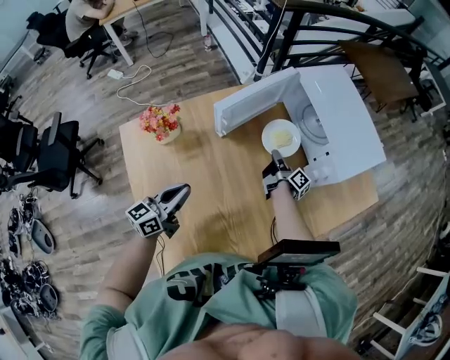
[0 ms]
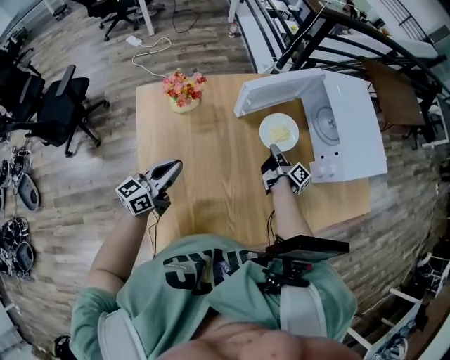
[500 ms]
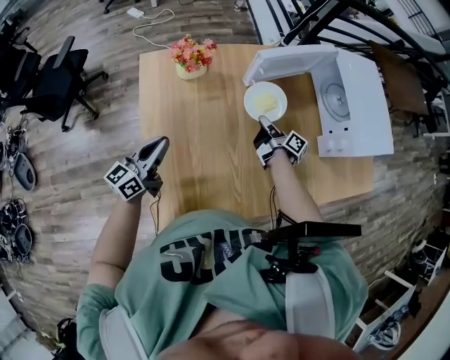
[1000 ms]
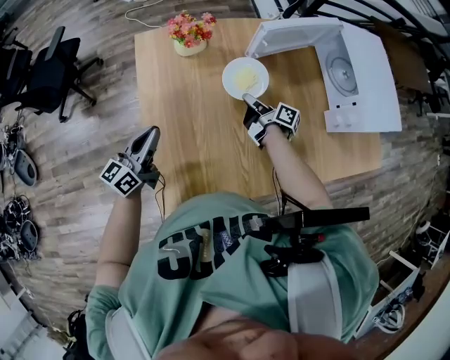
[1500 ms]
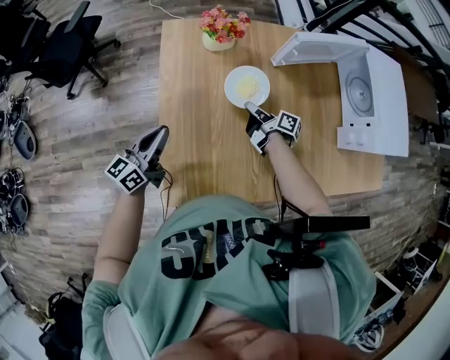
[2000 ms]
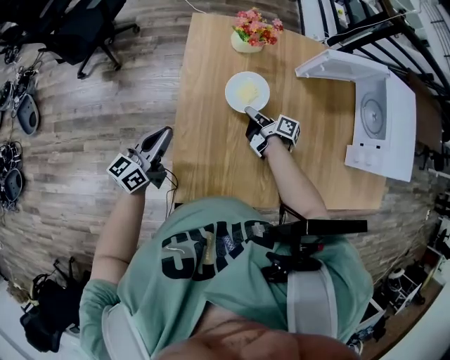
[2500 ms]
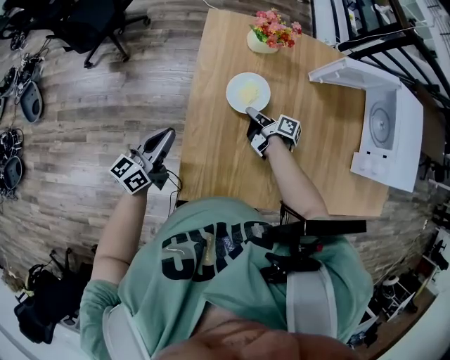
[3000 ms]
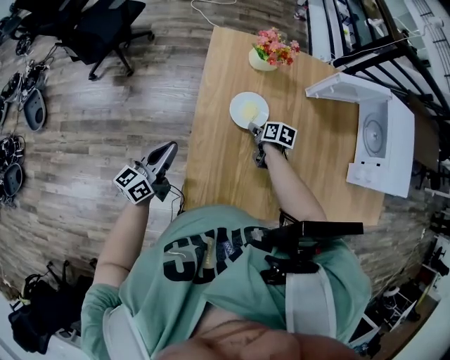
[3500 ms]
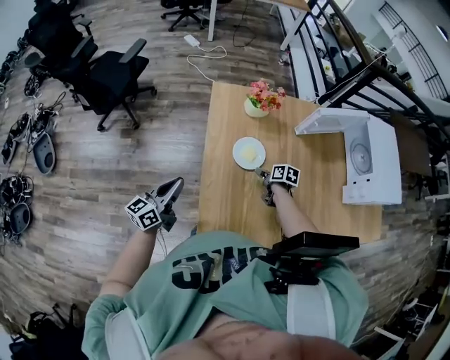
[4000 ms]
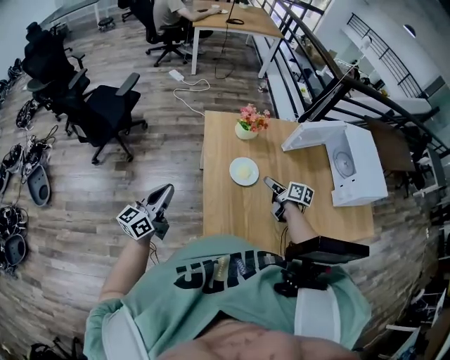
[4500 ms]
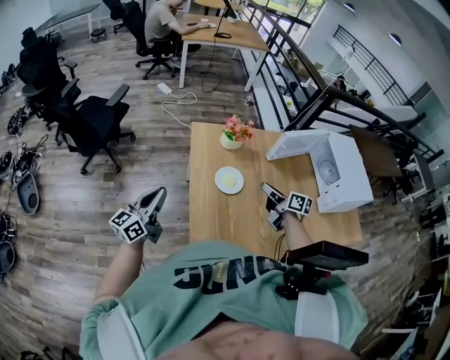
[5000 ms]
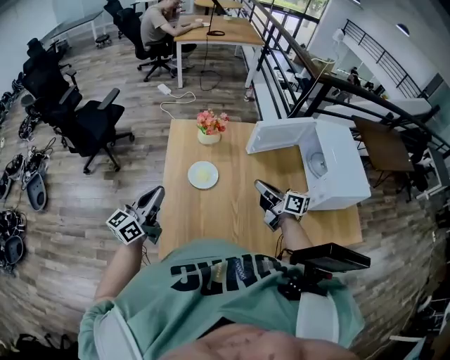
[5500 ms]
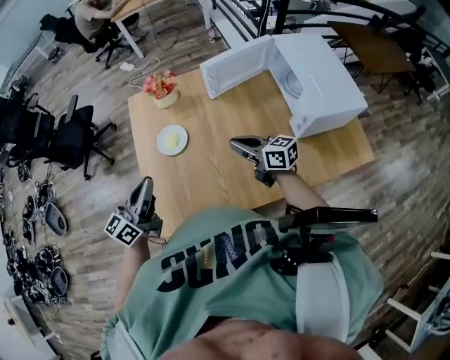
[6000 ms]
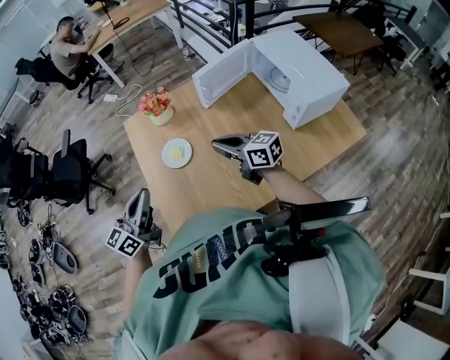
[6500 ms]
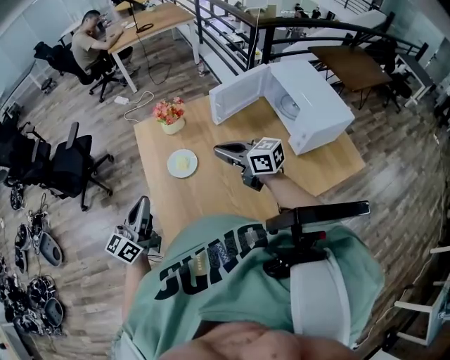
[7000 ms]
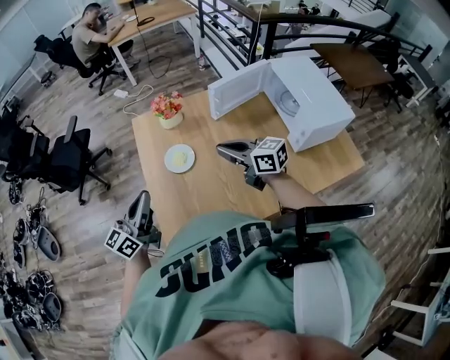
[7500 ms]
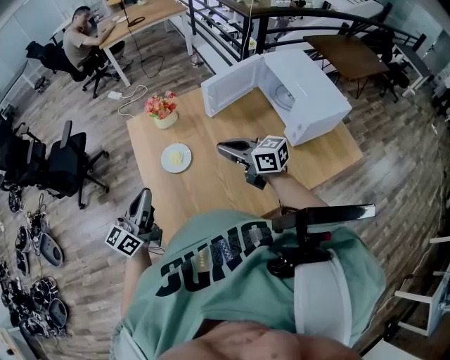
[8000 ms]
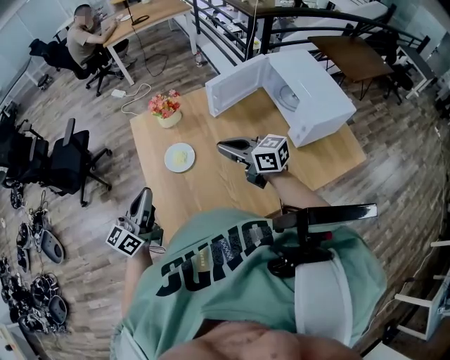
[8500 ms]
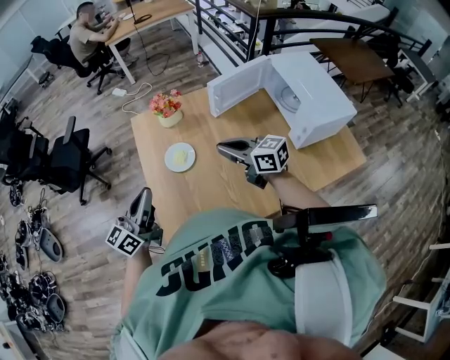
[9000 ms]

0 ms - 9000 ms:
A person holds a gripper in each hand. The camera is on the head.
0 ms - 2000 ms: The right gripper changes place by approximately 30 cm, and changes its angle by some 50 degrees, while the left gripper changes place by some 25 cm, and rotates approximately 30 degrees.
2000 ms - 4500 ms: The right gripper shifts some 15 cm upward, to the left and backward, changes its angle by some 30 degrees, and opens up. The left gripper travels to the left and upward by about 20 cm.
4500 ms - 7000 ms: The left gripper shifts roughly 25 cm to the right and upward; the right gripper moves upward and to the right, about 20 cm, rotates approximately 40 degrees, and closes its fingers.
7000 ms - 9000 ms: There are only small adjustments of the grippers.

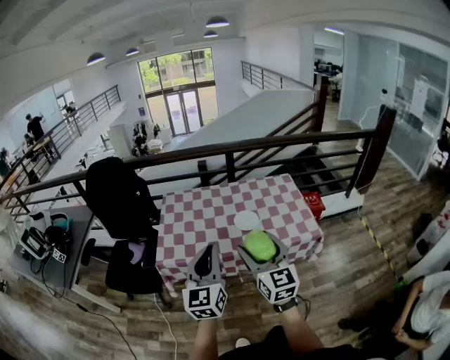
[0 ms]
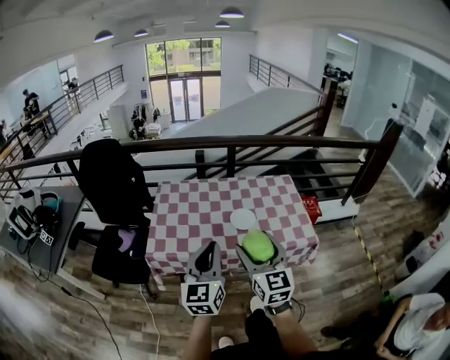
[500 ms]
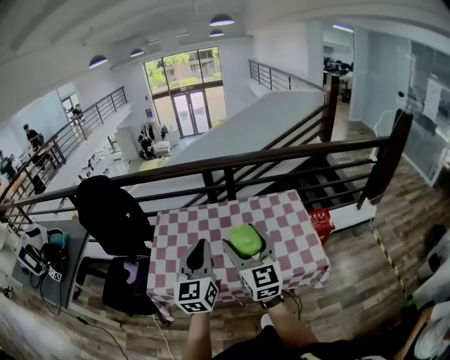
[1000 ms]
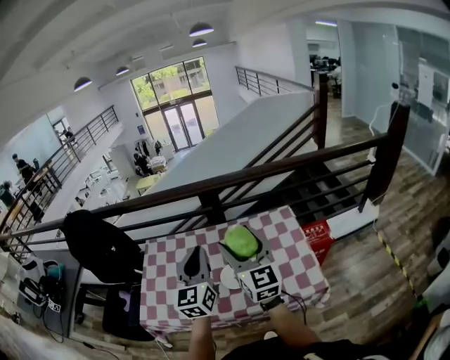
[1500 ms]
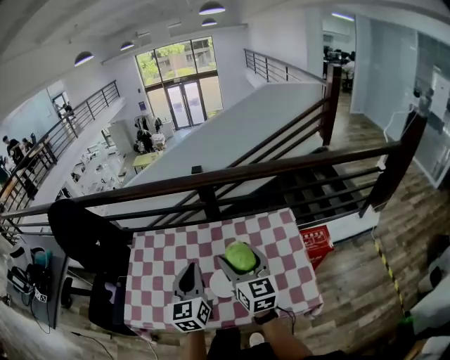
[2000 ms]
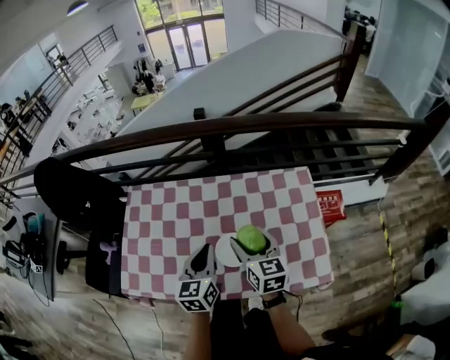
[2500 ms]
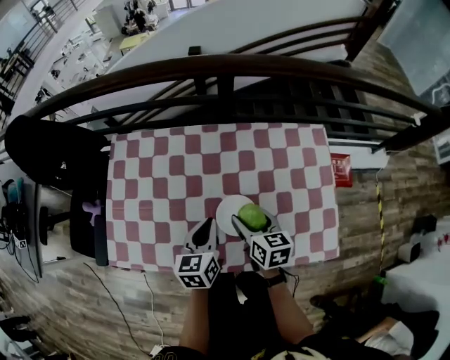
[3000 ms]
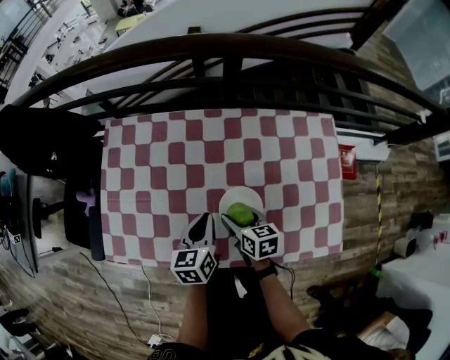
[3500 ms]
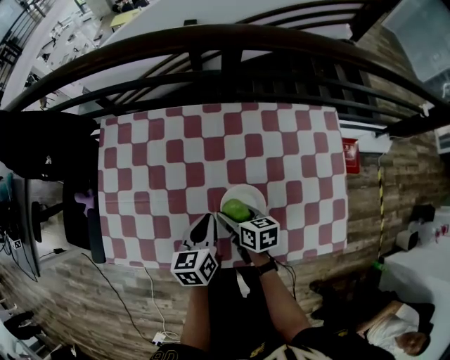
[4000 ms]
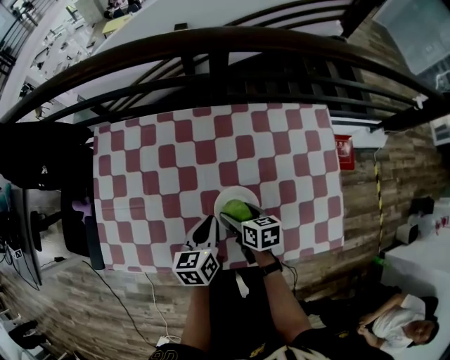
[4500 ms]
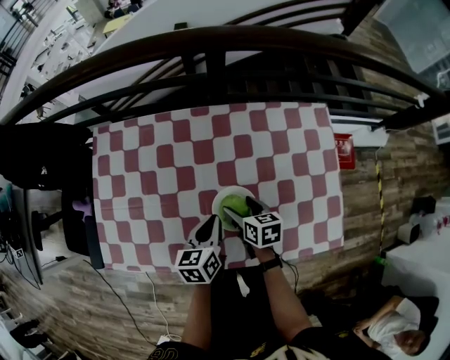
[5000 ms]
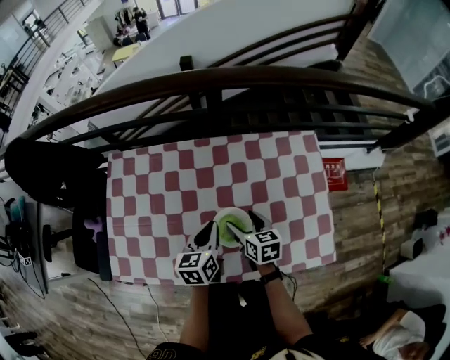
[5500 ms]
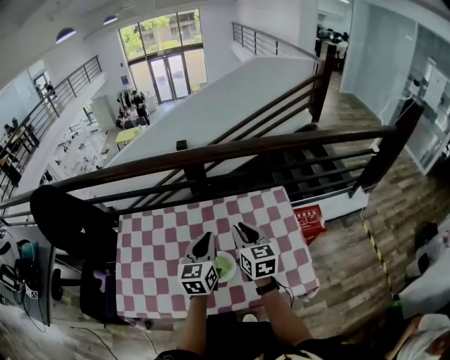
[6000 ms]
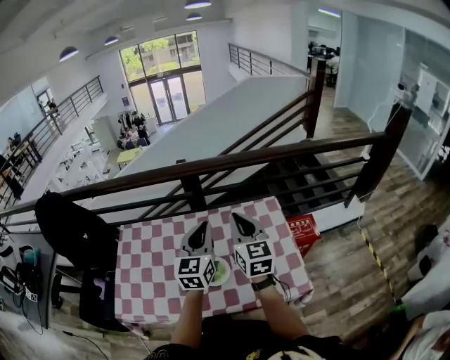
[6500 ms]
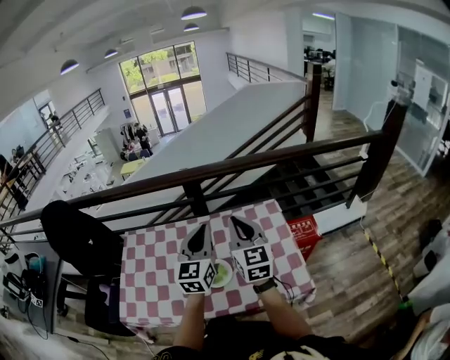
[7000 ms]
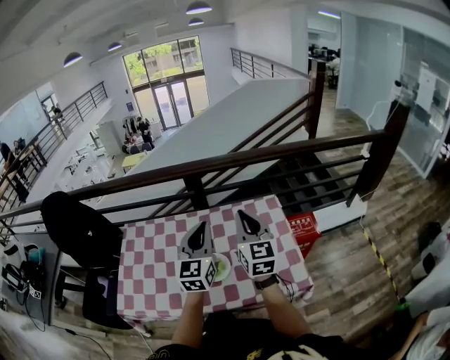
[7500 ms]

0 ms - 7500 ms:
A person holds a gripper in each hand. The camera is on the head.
0 ms - 2000 ms: The left gripper heads forward and to the right, covering approximately 40 cm, while the right gripper moves forward, some 35 cm.
2000 ms - 4000 ms: The grippers both shift downward by some 35 cm. The right gripper points its fingers about 40 degrees further downward. The left gripper rotates roughly 40 degrees.
4000 ms - 5500 ms: The left gripper goes some 5 cm to the right. The right gripper moves to the right and upward, approximately 10 cm.
5500 ms - 7500 ms: The two grippers go roughly 30 cm upward. The right gripper tilts its fingers roughly 40 degrees upward, and closes. Meanwhile the left gripper tips its fingers upward by about 30 degrees.

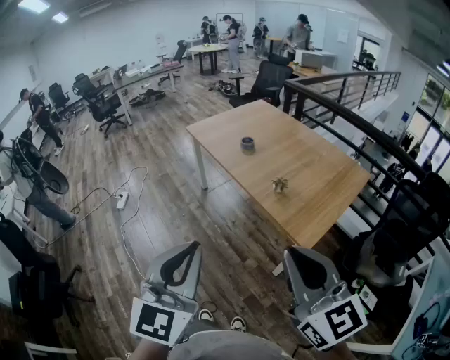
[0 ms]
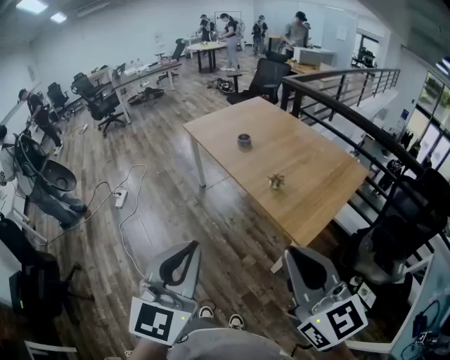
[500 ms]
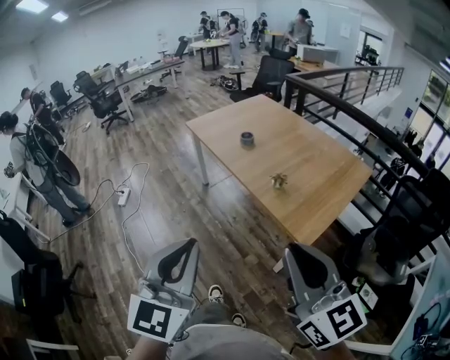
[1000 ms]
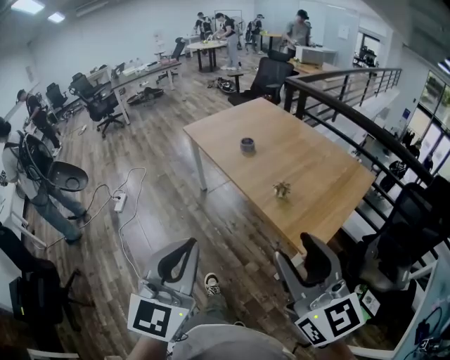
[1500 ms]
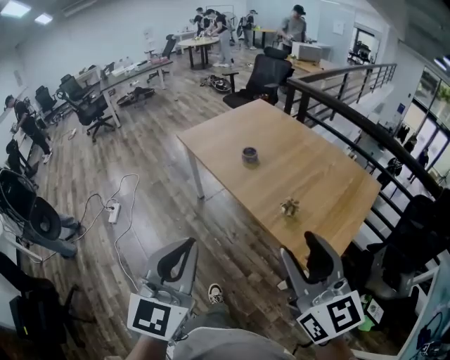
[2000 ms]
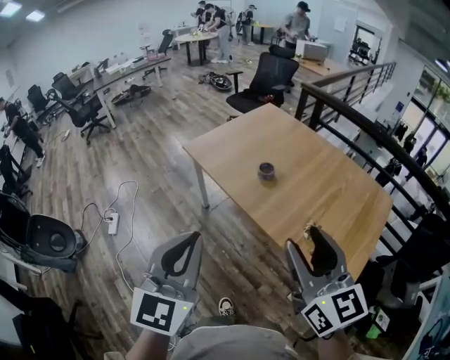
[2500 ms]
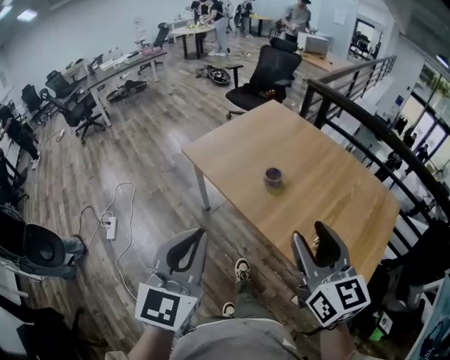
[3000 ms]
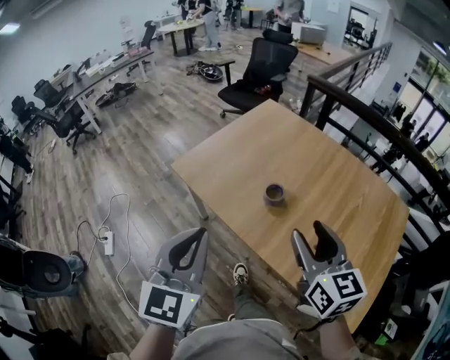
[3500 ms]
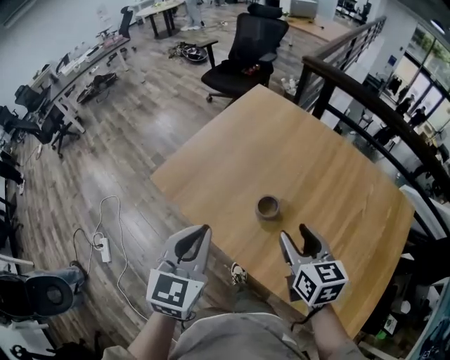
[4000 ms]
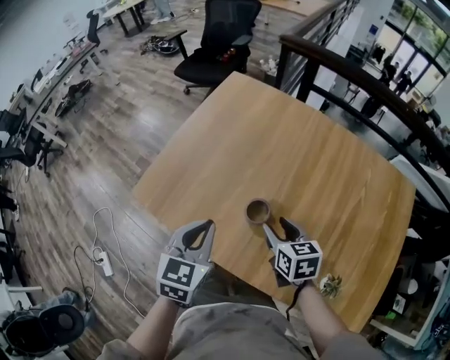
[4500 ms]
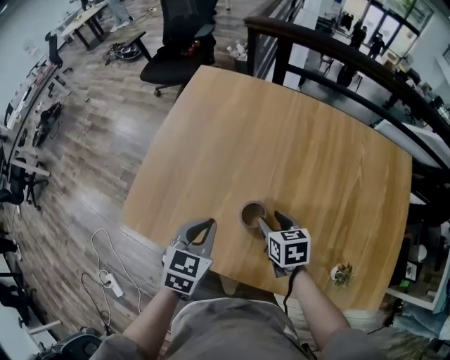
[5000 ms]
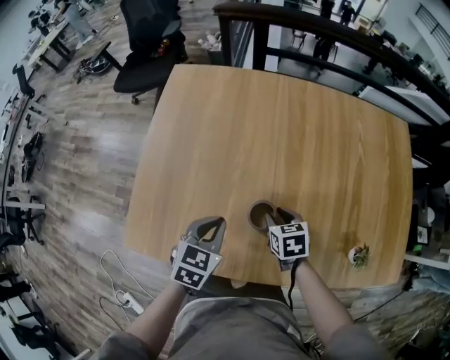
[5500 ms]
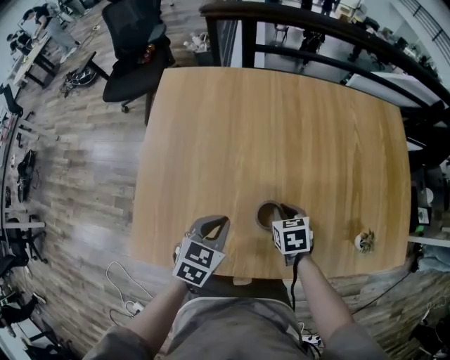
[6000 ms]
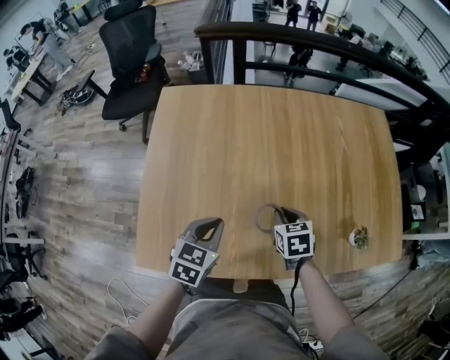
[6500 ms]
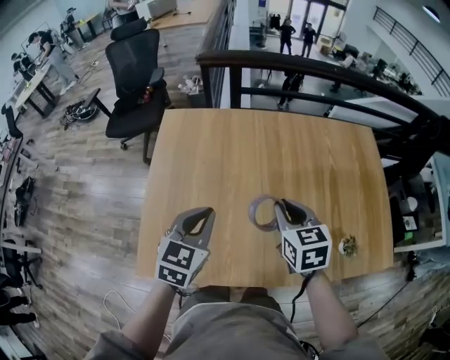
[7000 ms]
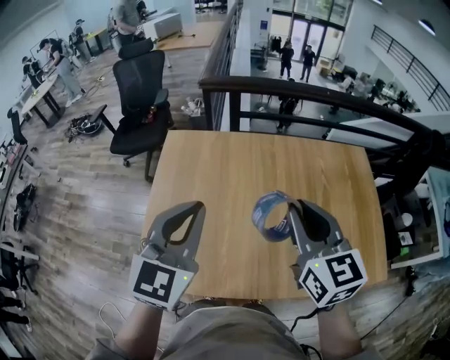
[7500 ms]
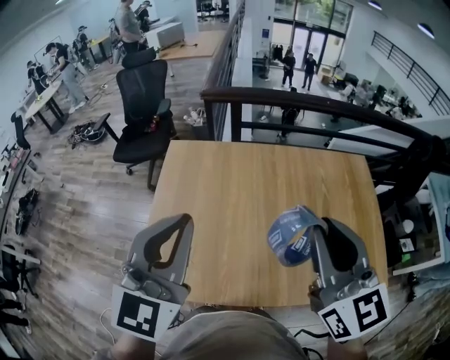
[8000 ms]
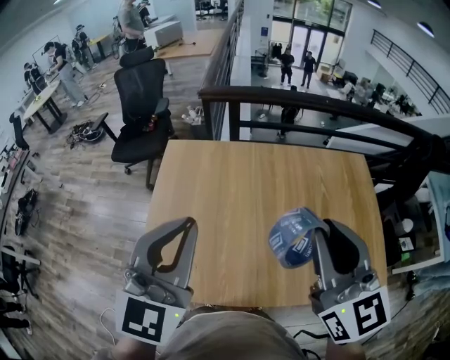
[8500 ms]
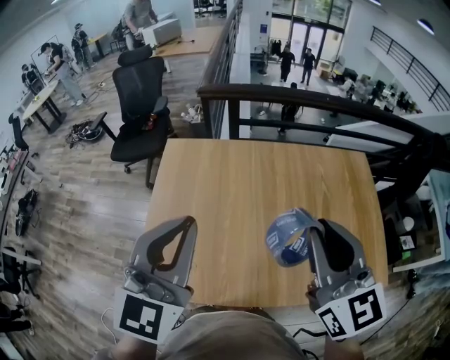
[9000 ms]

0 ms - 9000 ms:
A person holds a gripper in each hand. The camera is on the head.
0 ms - 2000 ms: Both grippers travel together forward, about 20 cm. The right gripper opens.
2000 ms - 4500 ms: The pair of grippers is taken forward, some 70 cm. The left gripper rotates roughly 40 degrees, while the right gripper moves downward, some 30 cm, and tips its fingers downward by some 40 degrees.
4500 ms - 7000 ms: The left gripper travels downward and back again, some 10 cm each way, and changes its angle by some 30 degrees; the right gripper moves upward, approximately 10 cm, turns by roughly 30 degrees, and closes up.
7000 ms - 9000 ms: The two grippers go approximately 25 cm upward. The left gripper changes its angle by approximately 30 degrees, while the right gripper tilts its fingers about 30 degrees upward.

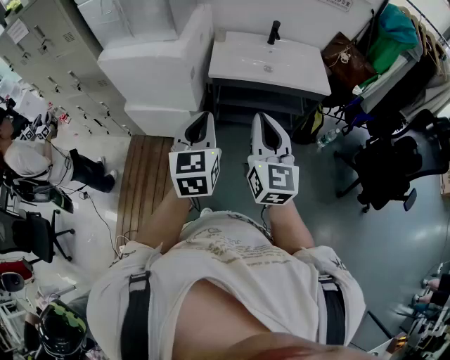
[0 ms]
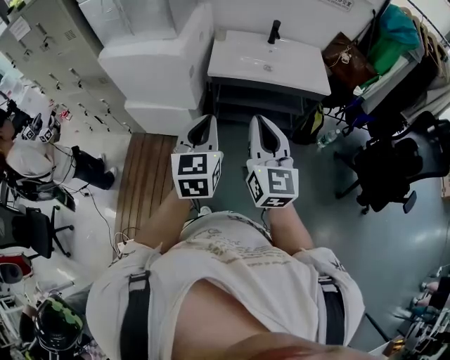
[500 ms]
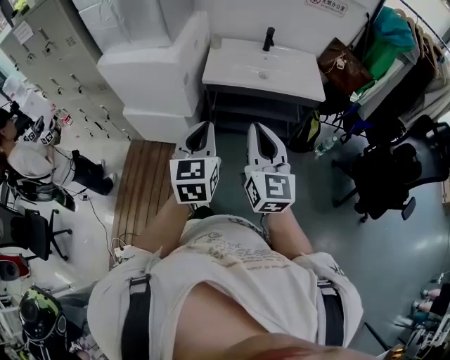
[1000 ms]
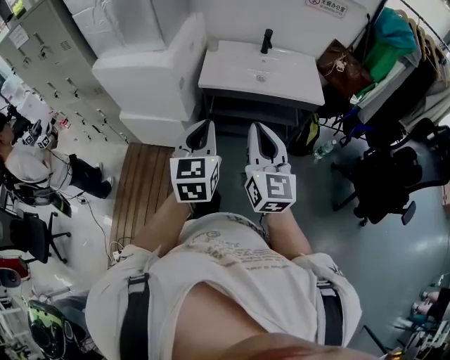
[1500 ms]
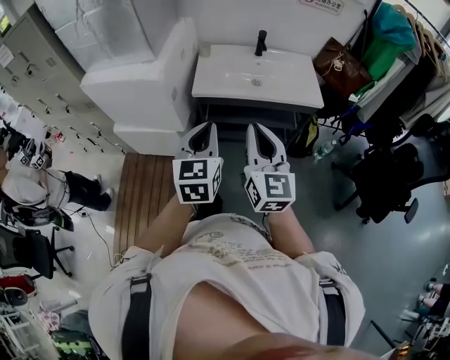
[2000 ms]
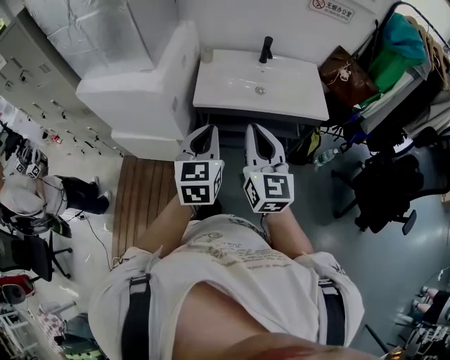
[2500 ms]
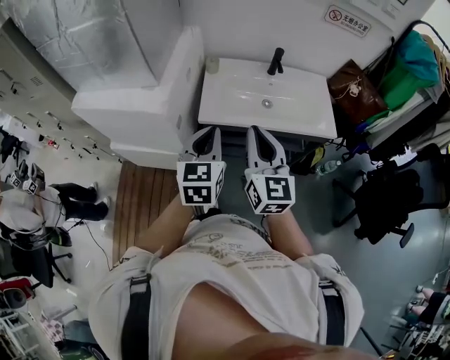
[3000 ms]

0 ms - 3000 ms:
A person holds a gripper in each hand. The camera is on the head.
0 ms - 1500 ms: The grippers both shift to the right by approximately 5 cm.
1500 ms - 3000 ms: The grippers both shift forward by approximately 25 cm.
